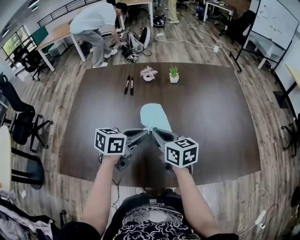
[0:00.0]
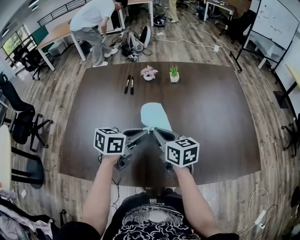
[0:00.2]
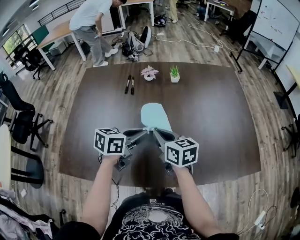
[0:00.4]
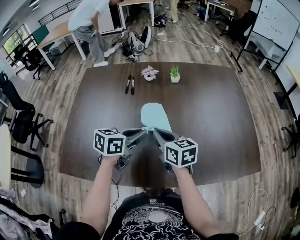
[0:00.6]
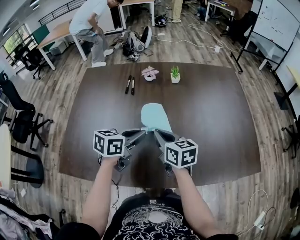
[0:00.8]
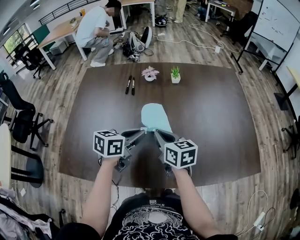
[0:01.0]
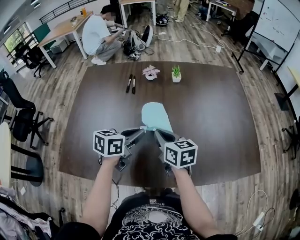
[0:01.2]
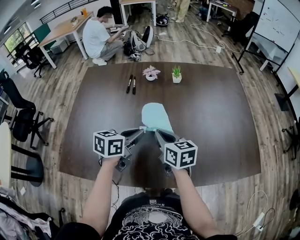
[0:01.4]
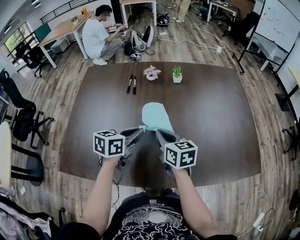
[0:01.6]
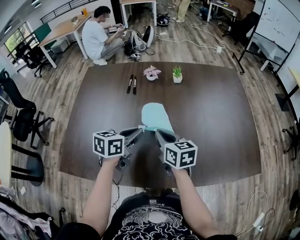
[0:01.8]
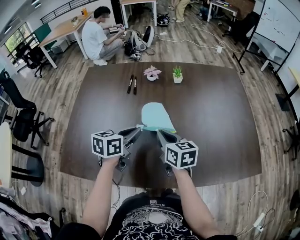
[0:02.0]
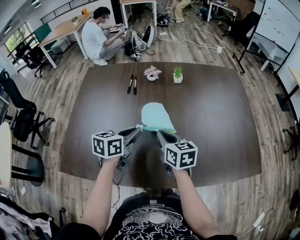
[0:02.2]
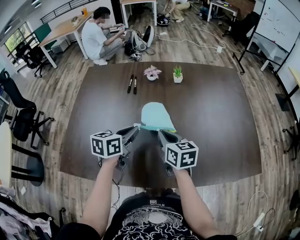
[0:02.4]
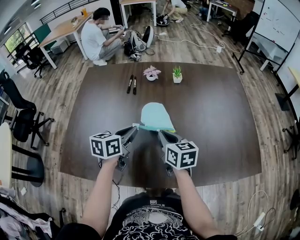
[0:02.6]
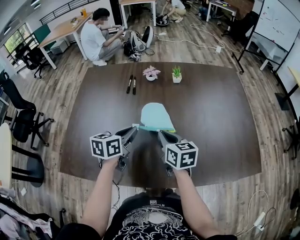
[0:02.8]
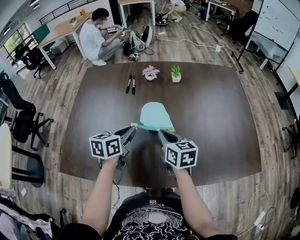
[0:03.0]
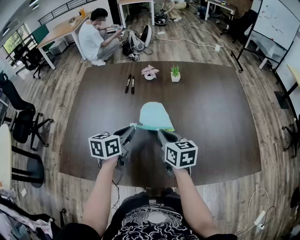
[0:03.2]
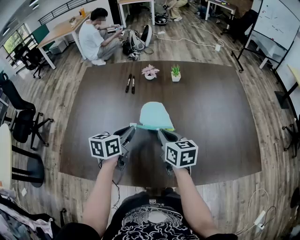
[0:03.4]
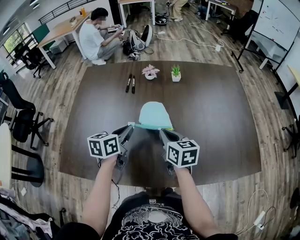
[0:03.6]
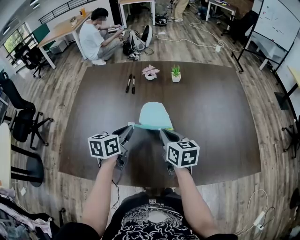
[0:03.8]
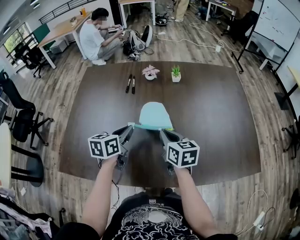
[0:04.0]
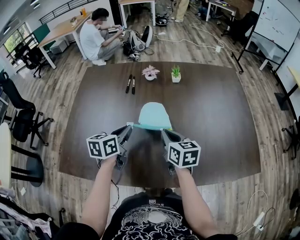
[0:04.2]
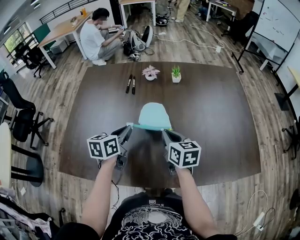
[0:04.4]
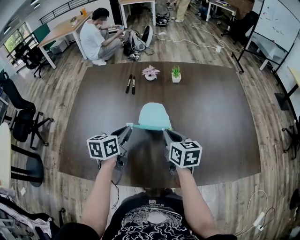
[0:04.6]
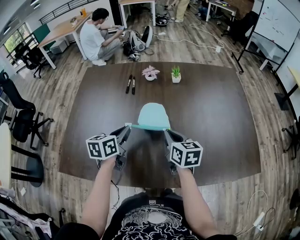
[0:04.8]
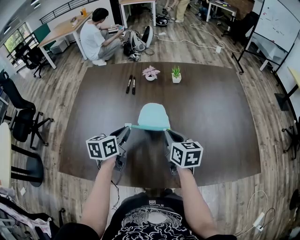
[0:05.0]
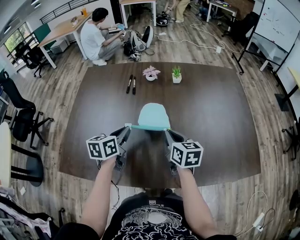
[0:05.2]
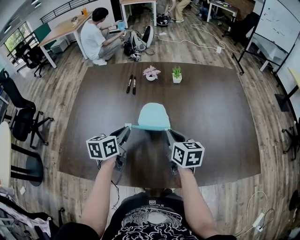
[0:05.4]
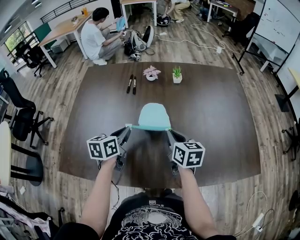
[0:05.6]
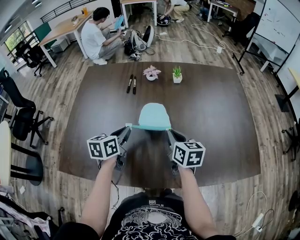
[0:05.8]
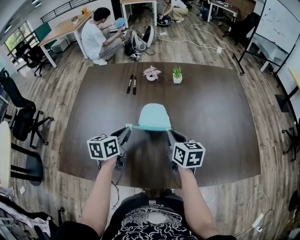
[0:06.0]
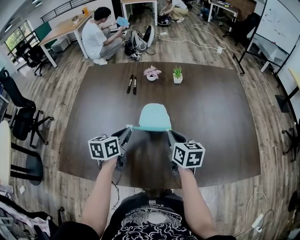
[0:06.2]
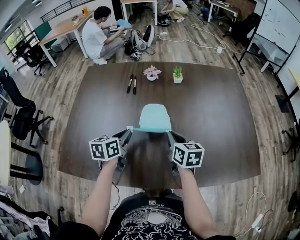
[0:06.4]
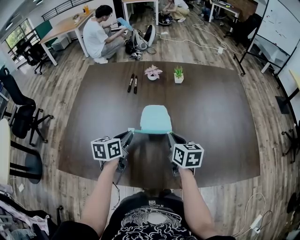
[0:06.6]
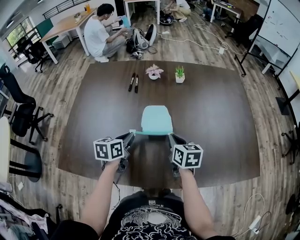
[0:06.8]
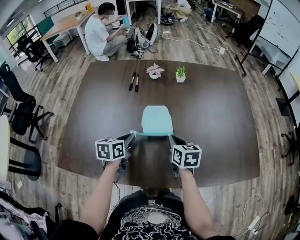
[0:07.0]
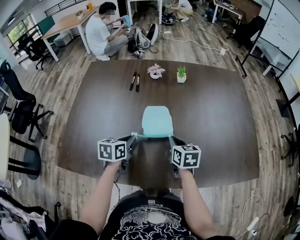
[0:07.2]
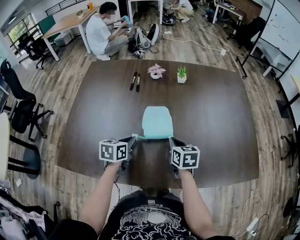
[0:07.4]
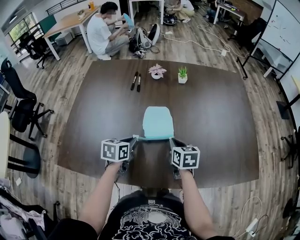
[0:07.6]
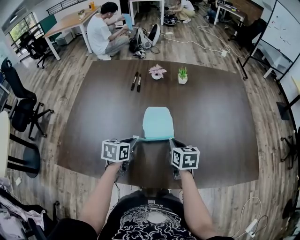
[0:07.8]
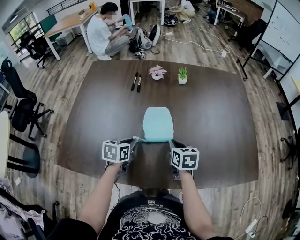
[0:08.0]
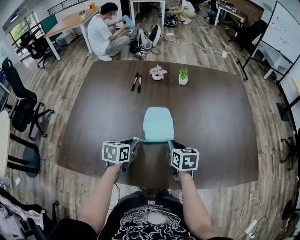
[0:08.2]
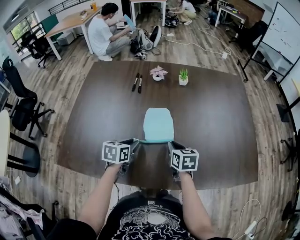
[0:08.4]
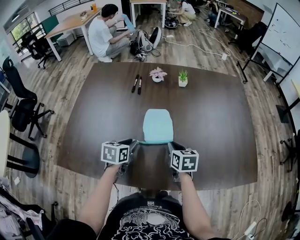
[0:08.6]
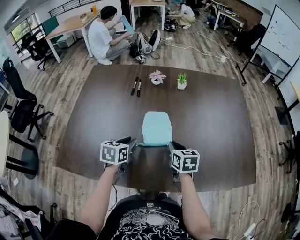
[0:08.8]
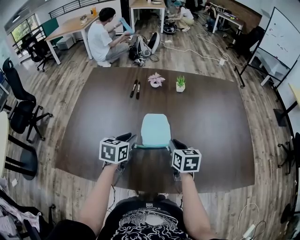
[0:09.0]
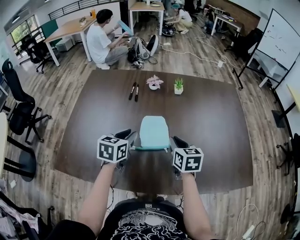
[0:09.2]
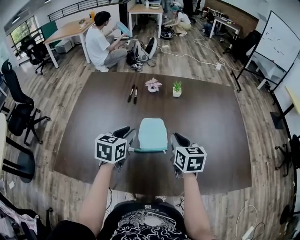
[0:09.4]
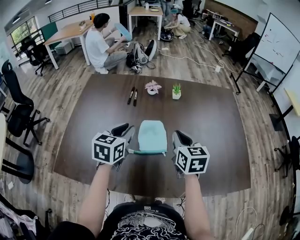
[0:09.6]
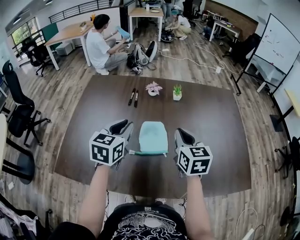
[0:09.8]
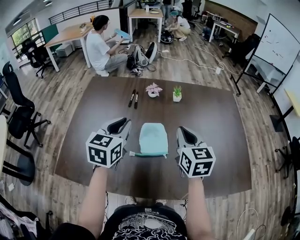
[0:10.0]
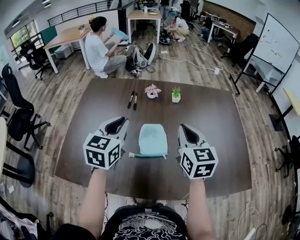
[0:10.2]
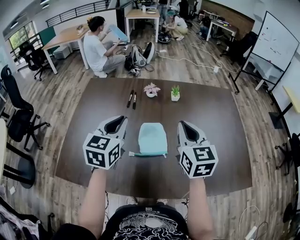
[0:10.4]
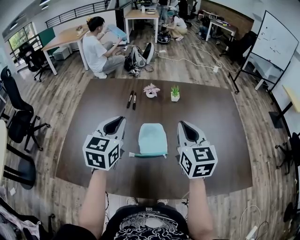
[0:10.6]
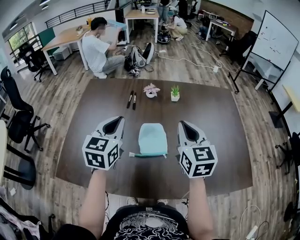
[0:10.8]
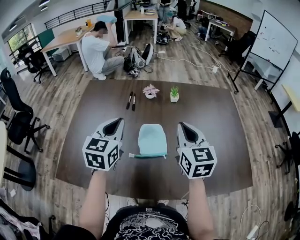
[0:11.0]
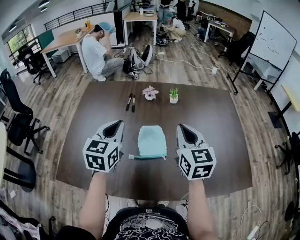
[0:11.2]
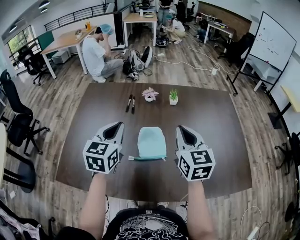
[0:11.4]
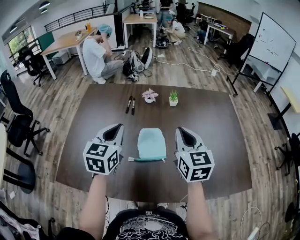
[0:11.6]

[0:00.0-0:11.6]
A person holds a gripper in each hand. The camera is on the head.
0.0 to 1.4 s: The grippers move only a little.
1.4 to 2.8 s: The grippers make only small movements.
2.8 to 5.8 s: The grippers make only small movements.
5.8 to 7.2 s: Both grippers move downward, some 5 cm.
7.2 to 8.8 s: The grippers stay close to where they were, moving slightly.
8.8 to 10.2 s: Both grippers travel together upward, roughly 20 cm. The right gripper swivels about 30 degrees; the left gripper swivels about 30 degrees.
10.2 to 11.6 s: The two grippers keep their place.

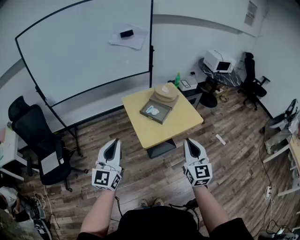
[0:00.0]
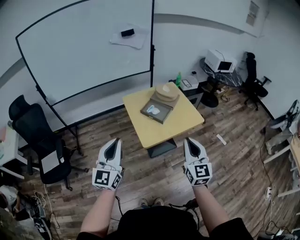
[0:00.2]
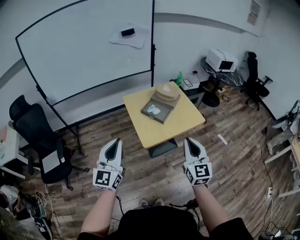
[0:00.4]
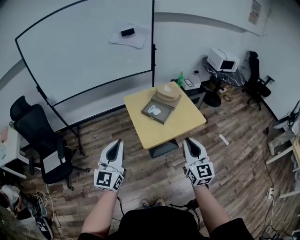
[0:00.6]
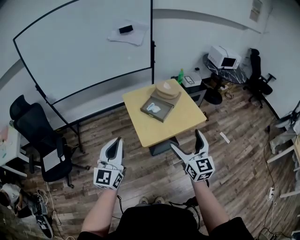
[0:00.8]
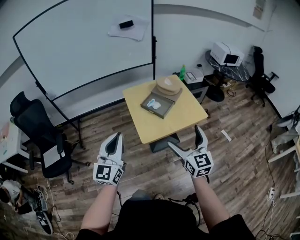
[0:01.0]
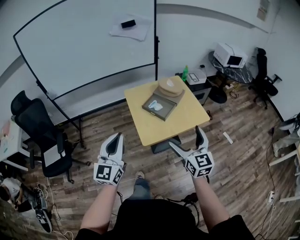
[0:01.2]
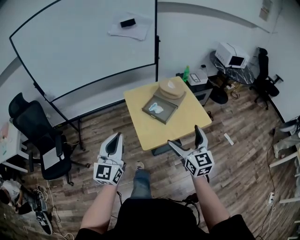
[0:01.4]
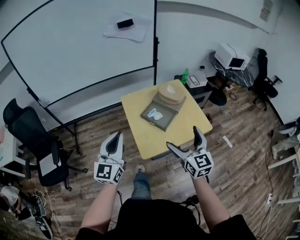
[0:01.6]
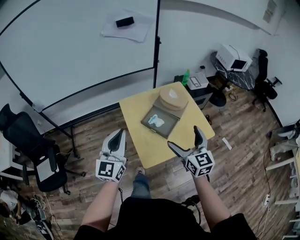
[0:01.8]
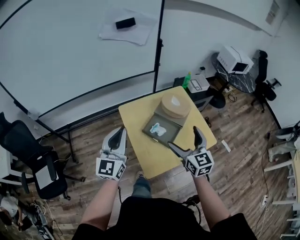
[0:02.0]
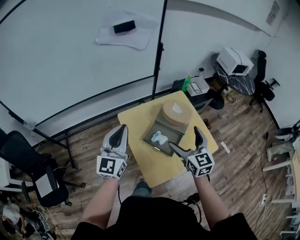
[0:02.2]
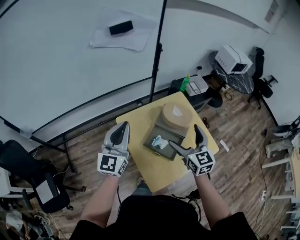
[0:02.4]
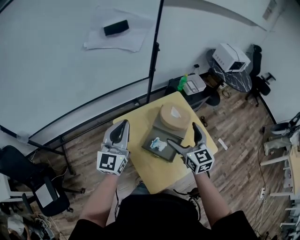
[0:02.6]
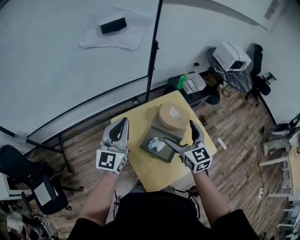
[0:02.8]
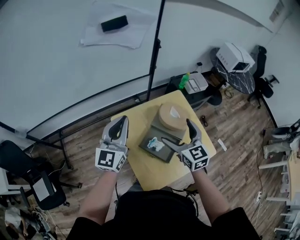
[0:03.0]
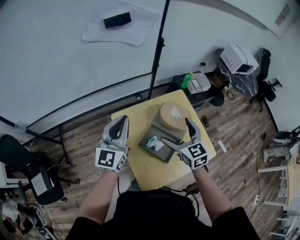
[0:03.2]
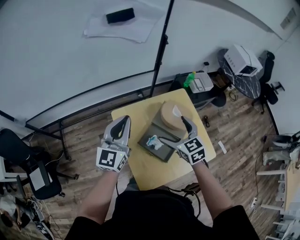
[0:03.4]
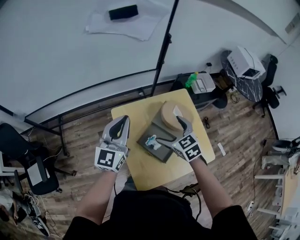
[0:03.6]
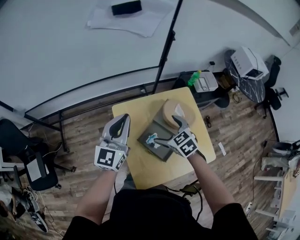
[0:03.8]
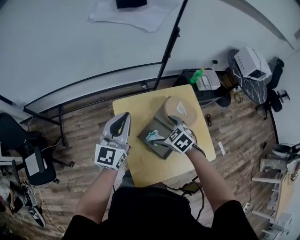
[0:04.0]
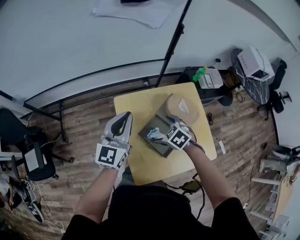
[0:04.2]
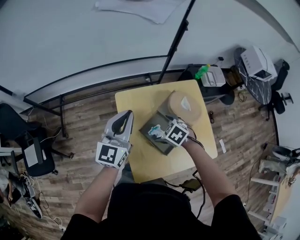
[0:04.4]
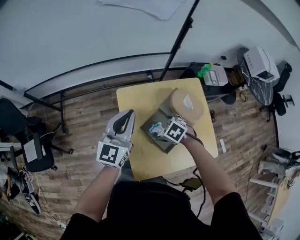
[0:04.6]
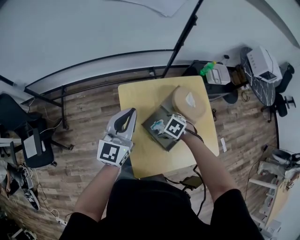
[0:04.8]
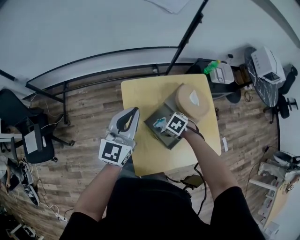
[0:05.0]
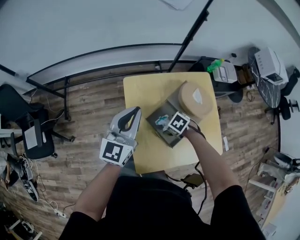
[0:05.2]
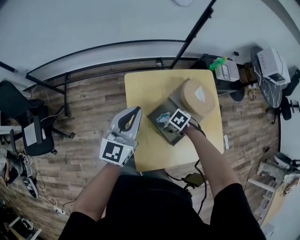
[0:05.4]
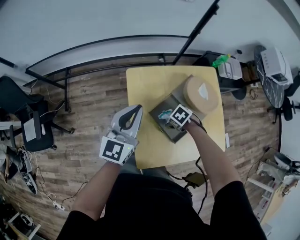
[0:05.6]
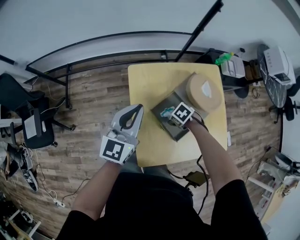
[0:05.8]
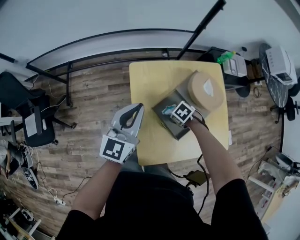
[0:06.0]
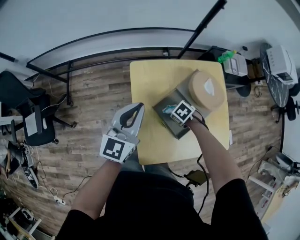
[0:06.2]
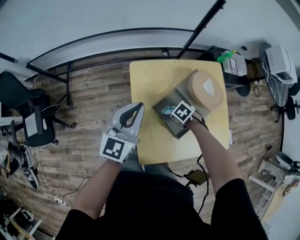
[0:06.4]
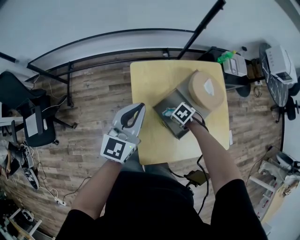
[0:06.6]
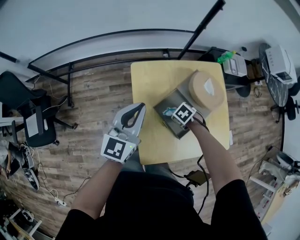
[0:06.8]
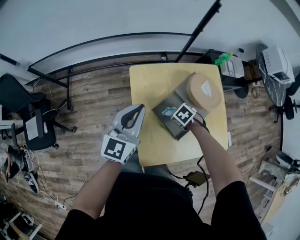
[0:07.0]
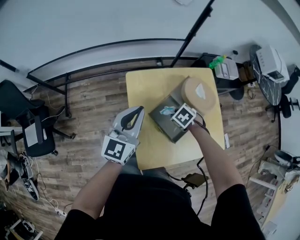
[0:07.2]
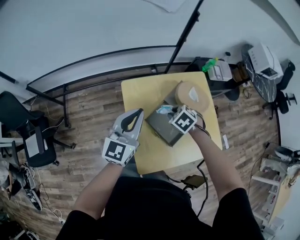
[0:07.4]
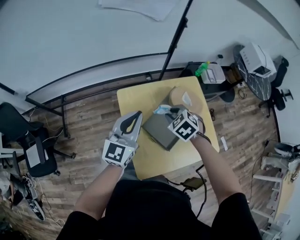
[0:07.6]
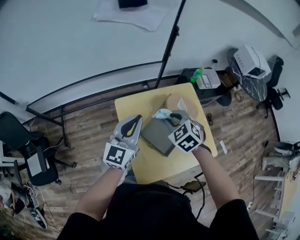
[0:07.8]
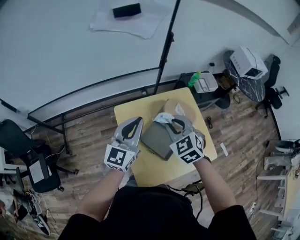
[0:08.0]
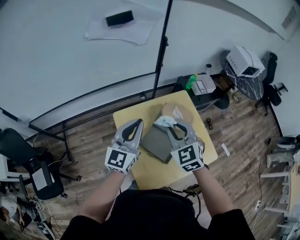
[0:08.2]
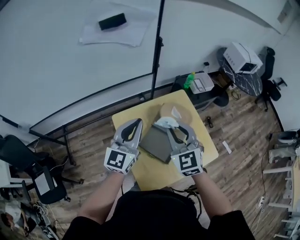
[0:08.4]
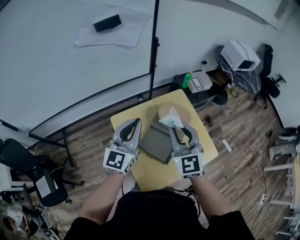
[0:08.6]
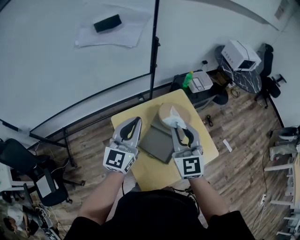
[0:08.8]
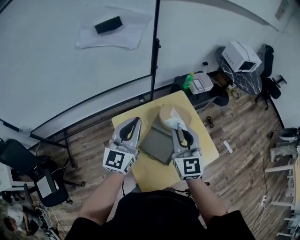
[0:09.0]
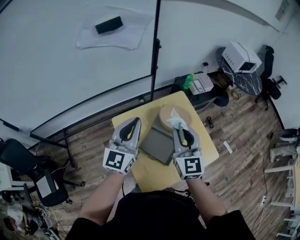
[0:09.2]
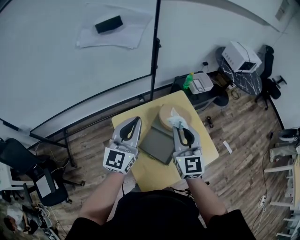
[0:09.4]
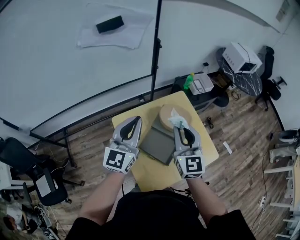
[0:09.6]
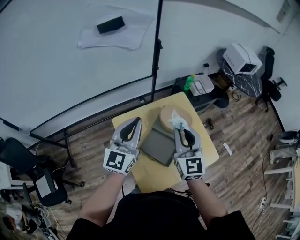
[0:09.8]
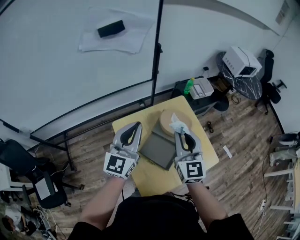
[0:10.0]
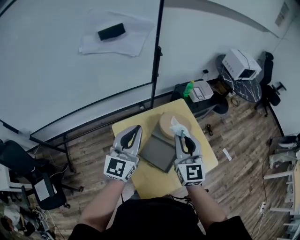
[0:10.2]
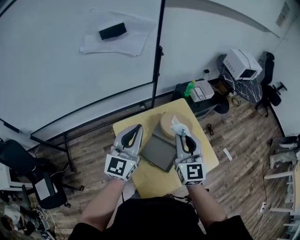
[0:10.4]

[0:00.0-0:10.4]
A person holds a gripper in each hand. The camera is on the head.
0.0 to 1.4 s: The two grippers go roughly 10 cm forward. The right gripper opens.
1.4 to 3.0 s: The pair of grippers is taken forward, roughly 40 cm.
3.0 to 4.4 s: The left gripper travels downward by about 10 cm. The right gripper shifts approximately 20 cm downward, and points its fingers some 50 degrees further downward.
4.4 to 6.0 s: The left gripper shifts some 10 cm downward. Meanwhile the right gripper shifts approximately 15 cm downward, and closes up.
6.0 to 7.4 s: The left gripper changes place by some 5 cm; the right gripper goes about 15 cm upward, turns by roughly 20 degrees, and closes up.
7.4 to 9.0 s: The left gripper travels upward, to the right and forward by some 15 cm. The right gripper travels upward by about 25 cm, and points its fingers roughly 70 degrees further upward.
9.0 to 10.4 s: The grippers stay close to where they were, moving slightly.

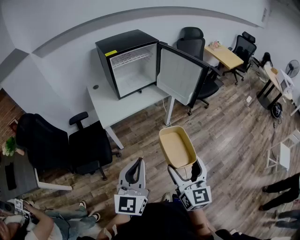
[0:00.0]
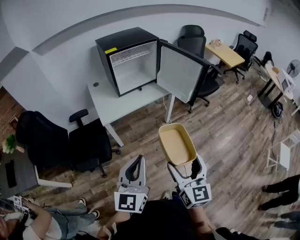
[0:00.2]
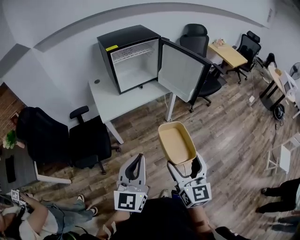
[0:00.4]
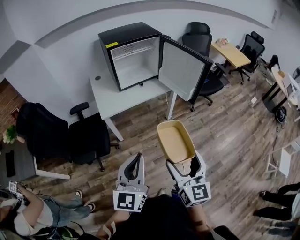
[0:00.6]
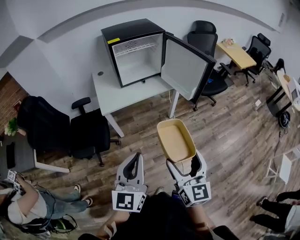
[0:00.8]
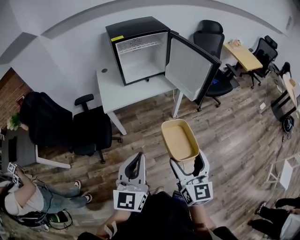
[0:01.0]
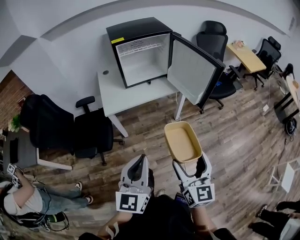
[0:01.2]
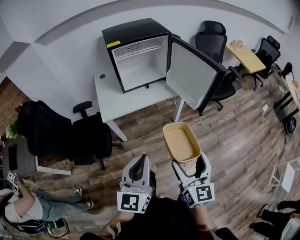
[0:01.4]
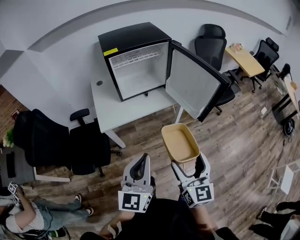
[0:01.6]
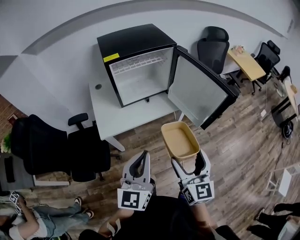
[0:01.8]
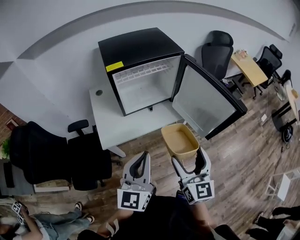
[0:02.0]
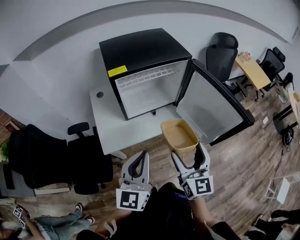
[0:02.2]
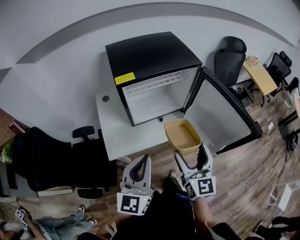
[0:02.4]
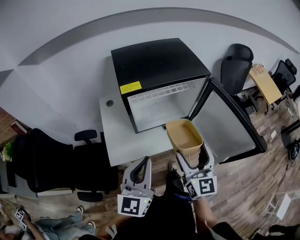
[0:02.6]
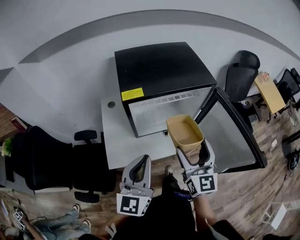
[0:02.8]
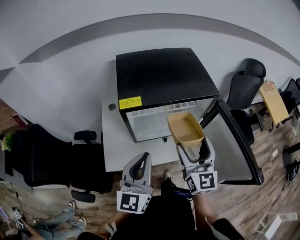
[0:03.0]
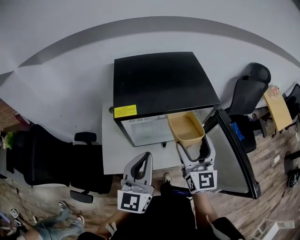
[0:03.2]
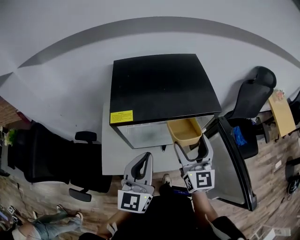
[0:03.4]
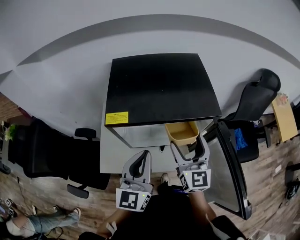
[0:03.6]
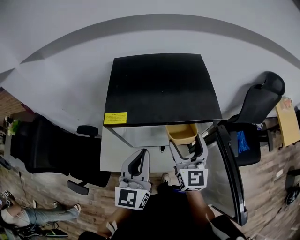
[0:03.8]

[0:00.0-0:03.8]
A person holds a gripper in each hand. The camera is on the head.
0.0 to 1.2 s: The left gripper travels to the right by roughly 10 cm. Meanwhile the right gripper travels to the right and forward by about 10 cm.
1.2 to 2.6 s: The pair of grippers is taken forward, roughly 40 cm.
2.6 to 3.8 s: The grippers both shift forward by about 20 cm.
